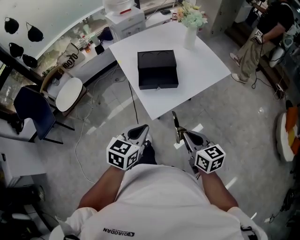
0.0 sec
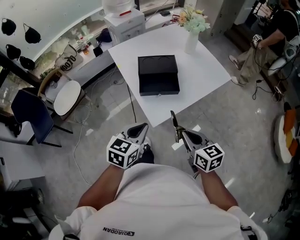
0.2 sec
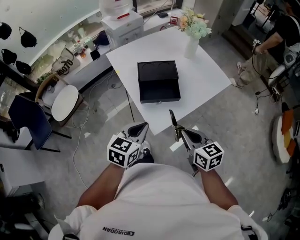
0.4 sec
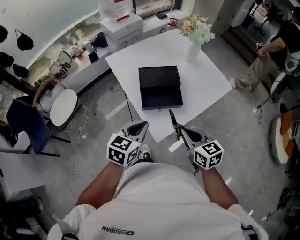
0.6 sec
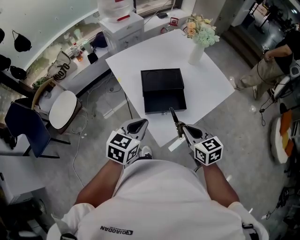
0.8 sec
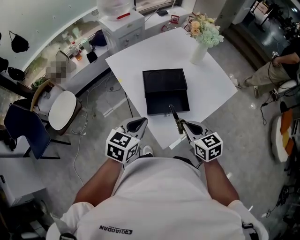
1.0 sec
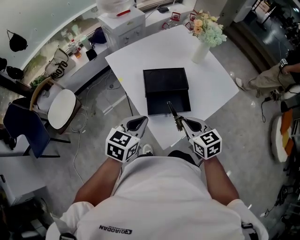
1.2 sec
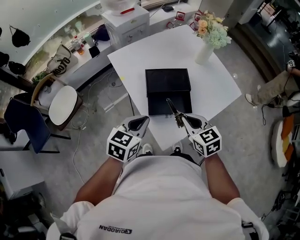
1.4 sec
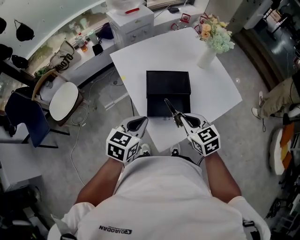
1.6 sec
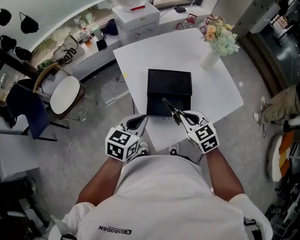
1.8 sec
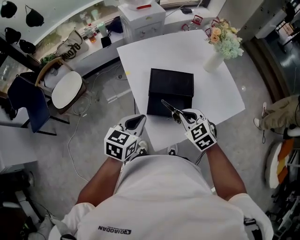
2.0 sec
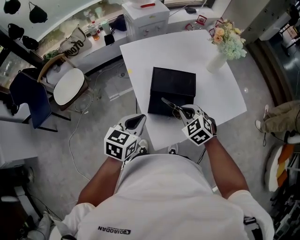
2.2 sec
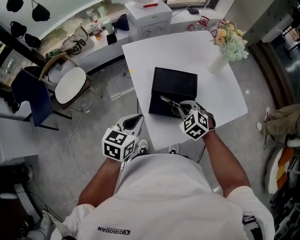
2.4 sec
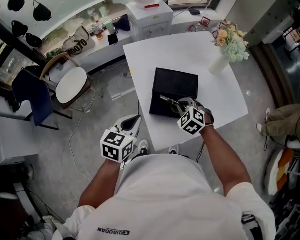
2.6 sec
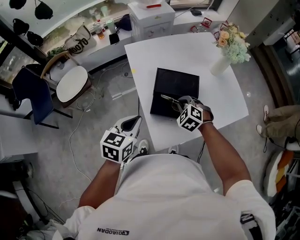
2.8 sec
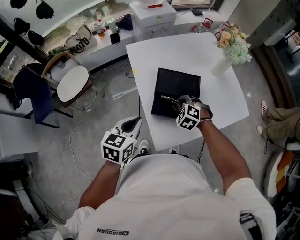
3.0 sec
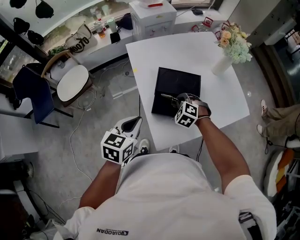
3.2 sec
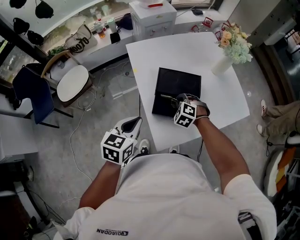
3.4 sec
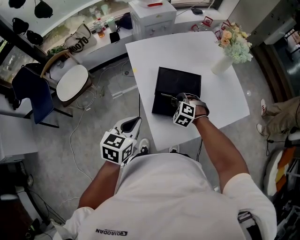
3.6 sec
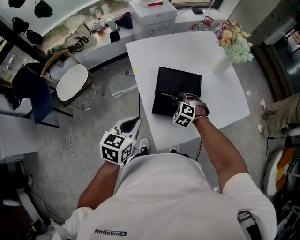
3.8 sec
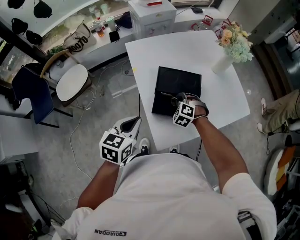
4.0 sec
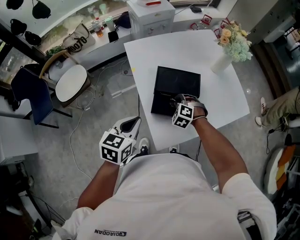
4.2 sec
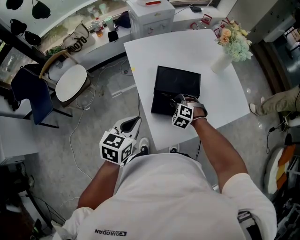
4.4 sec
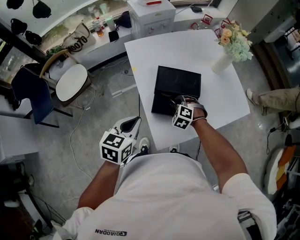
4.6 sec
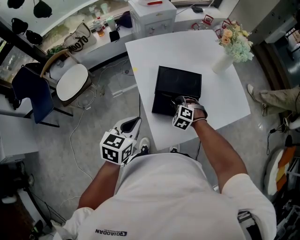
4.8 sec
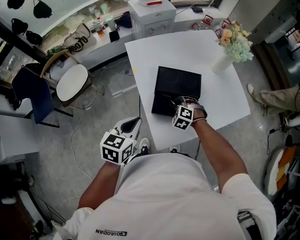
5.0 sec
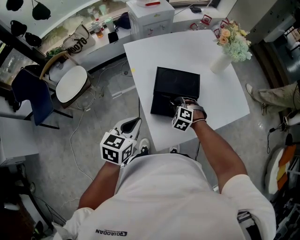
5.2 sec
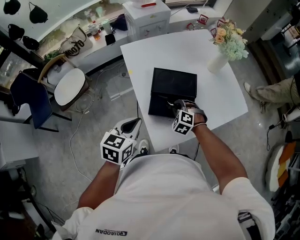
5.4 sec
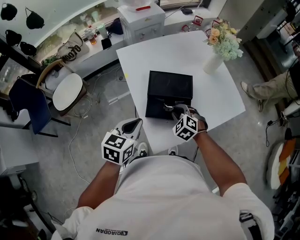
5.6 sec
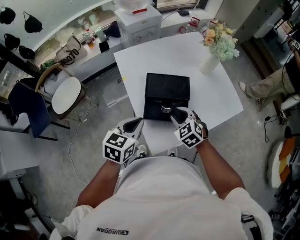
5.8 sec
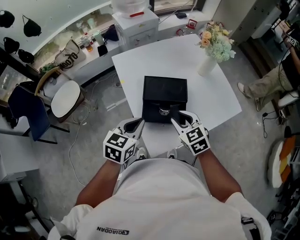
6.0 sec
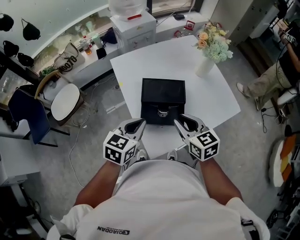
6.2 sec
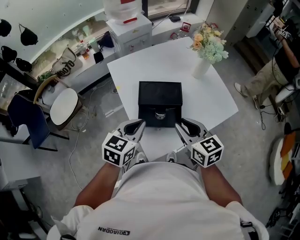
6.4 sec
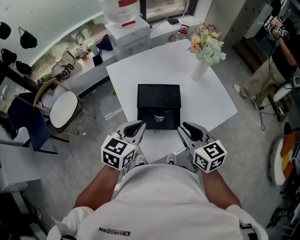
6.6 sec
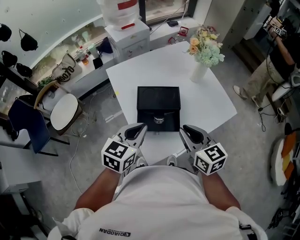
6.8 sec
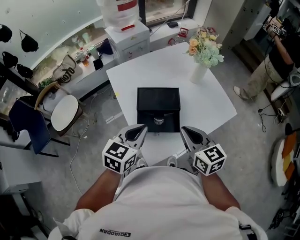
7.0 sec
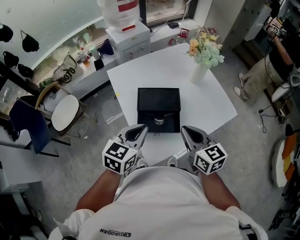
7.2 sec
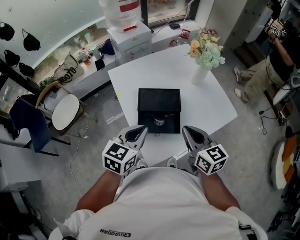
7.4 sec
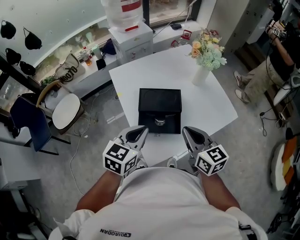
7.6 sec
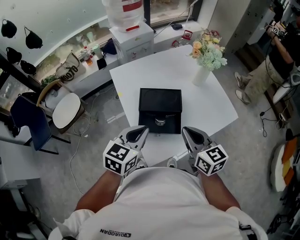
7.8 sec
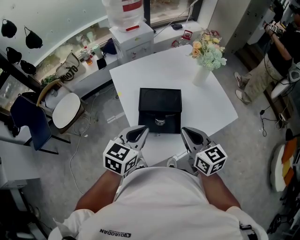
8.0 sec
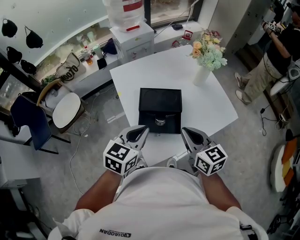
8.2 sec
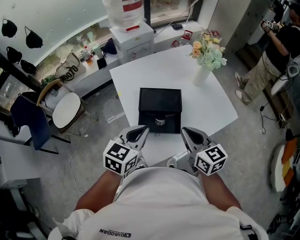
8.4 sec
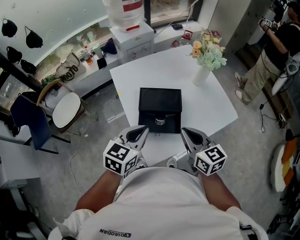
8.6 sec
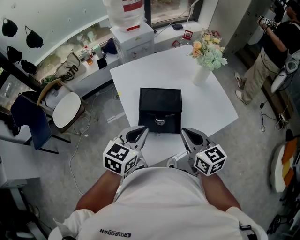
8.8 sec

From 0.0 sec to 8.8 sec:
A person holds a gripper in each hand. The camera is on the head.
From 0.0 sec to 1.4 sec: Both grippers travel together forward, approximately 25 cm. The right gripper turns by roughly 20 degrees.
From 1.4 sec to 3.0 sec: The left gripper turns by approximately 20 degrees, while the right gripper goes roughly 15 cm forward and downward, and twists about 60 degrees counterclockwise, seen from behind.
From 3.0 sec to 4.4 sec: The right gripper goes some 5 cm downward.
From 4.4 sec to 5.8 sec: The left gripper shifts by roughly 5 cm. The right gripper moves upward and backward, about 10 cm, swivels about 30 degrees, and opens up.
From 5.8 sec to 7.4 sec: The right gripper shifts some 15 cm upward and to the right, rolls clockwise, seen from behind, by about 40 degrees, and closes. Meanwhile the left gripper shifts some 10 cm upward and to the right.
From 7.4 sec to 8.8 sec: Both grippers stay put.

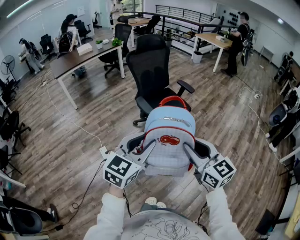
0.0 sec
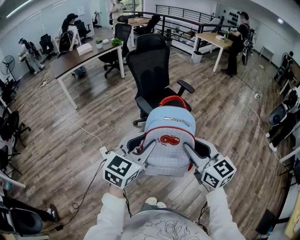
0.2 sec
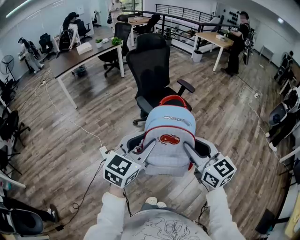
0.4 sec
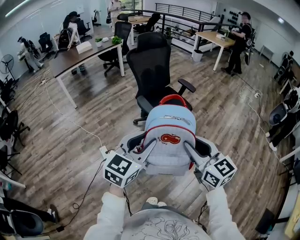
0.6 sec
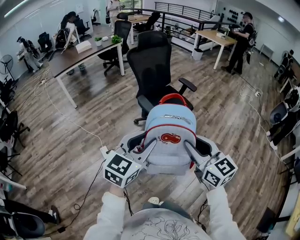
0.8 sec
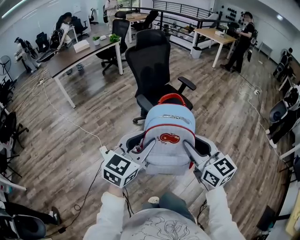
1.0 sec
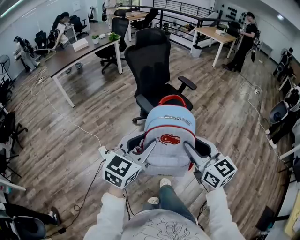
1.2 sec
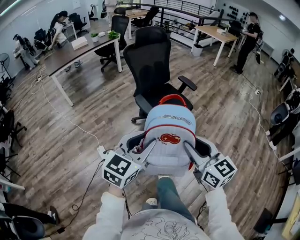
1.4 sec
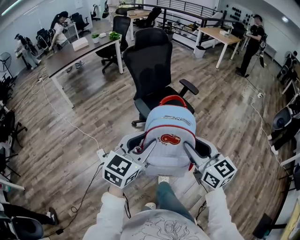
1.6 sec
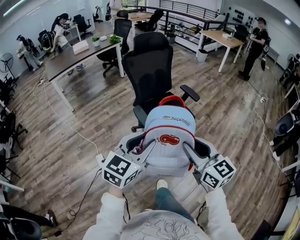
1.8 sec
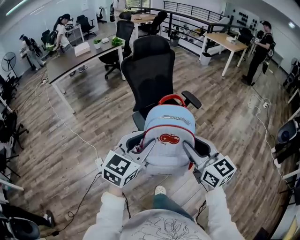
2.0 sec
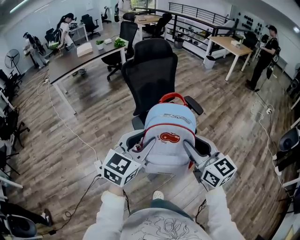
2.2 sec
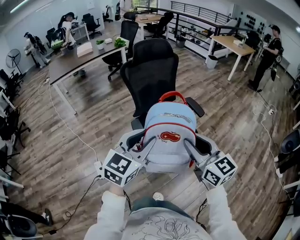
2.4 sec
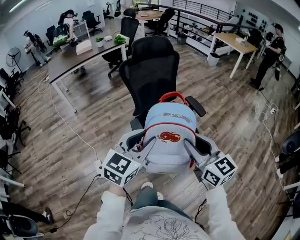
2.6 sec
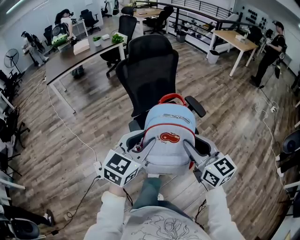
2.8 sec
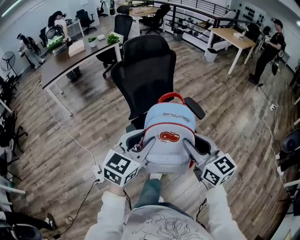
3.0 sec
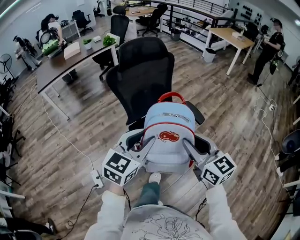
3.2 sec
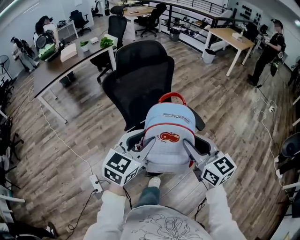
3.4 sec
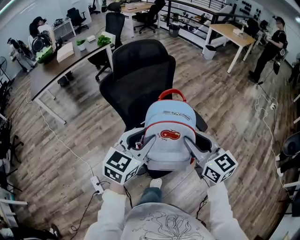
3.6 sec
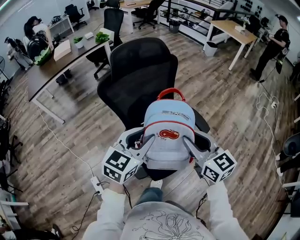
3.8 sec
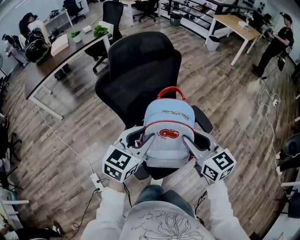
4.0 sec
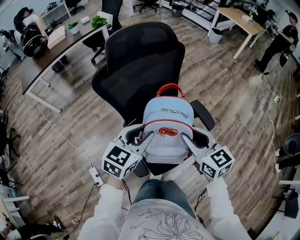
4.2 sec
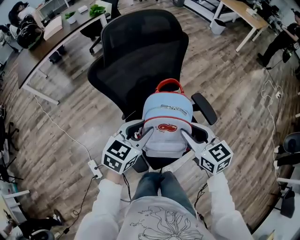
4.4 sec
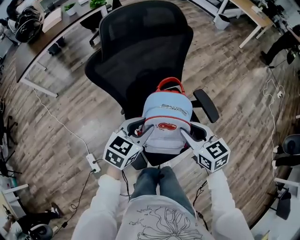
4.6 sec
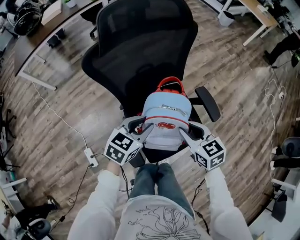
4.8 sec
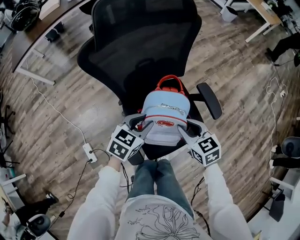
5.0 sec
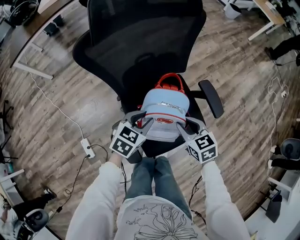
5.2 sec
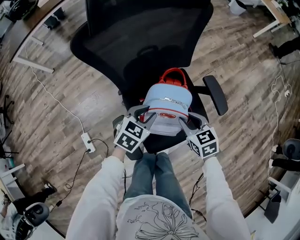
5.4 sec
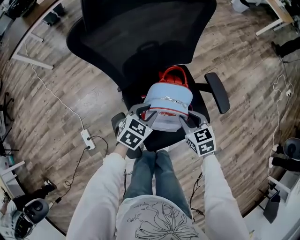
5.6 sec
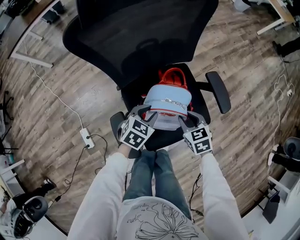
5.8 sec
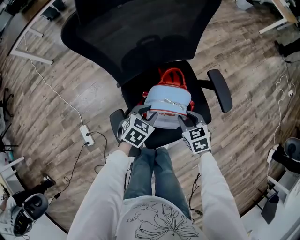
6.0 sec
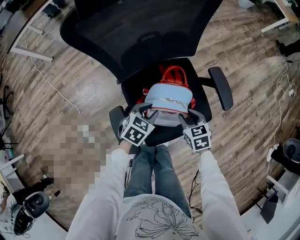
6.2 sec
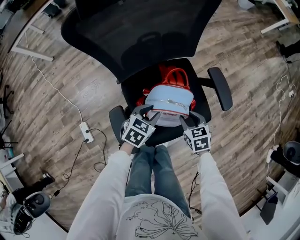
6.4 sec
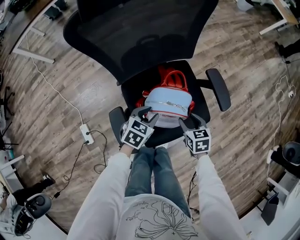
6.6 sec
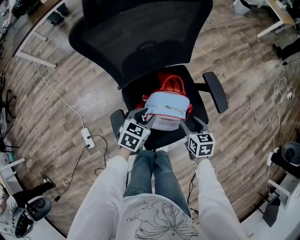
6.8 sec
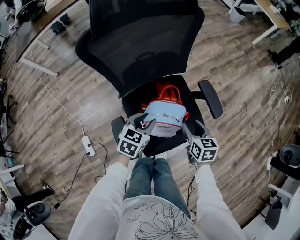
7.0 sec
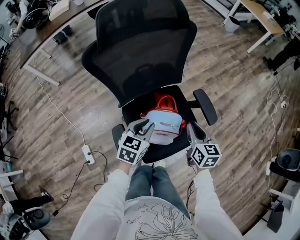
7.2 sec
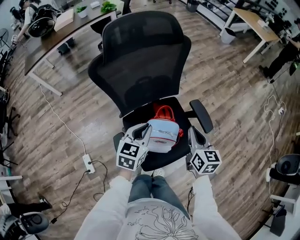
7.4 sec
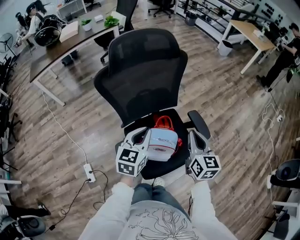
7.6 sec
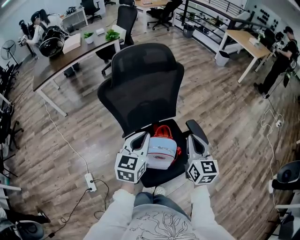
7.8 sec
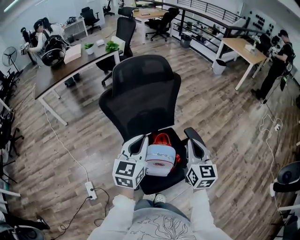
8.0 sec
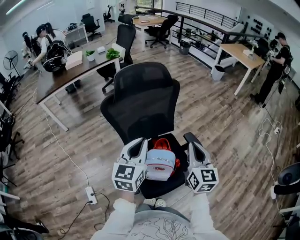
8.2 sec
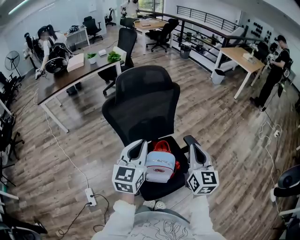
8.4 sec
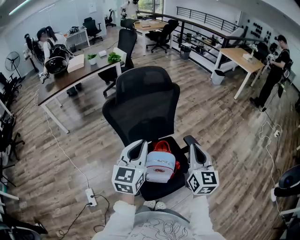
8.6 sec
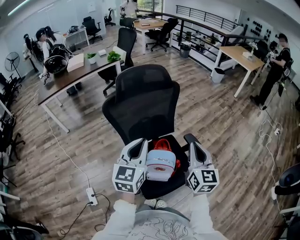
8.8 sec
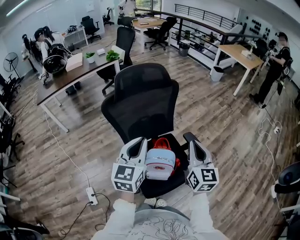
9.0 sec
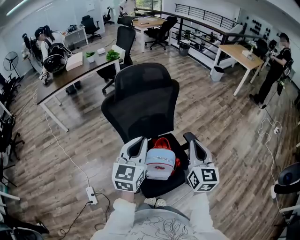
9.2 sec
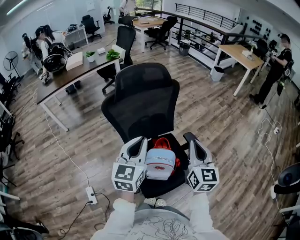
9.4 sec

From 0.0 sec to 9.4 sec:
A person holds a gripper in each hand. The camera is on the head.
From 0.0 sec to 1.6 sec: The grippers both shift forward by some 10 cm.
From 1.6 sec to 3.2 sec: The two grippers go approximately 25 cm forward.
From 3.2 sec to 4.8 sec: The grippers both shift downward and forward by about 20 cm. The left gripper changes its angle by approximately 20 degrees. Meanwhile the right gripper turns by approximately 30 degrees.
From 4.8 sec to 6.2 sec: Both grippers travel together downward, about 15 cm. The right gripper swivels roughly 20 degrees.
From 6.2 sec to 7.8 sec: Both grippers move upward, roughly 25 cm. The left gripper angles its fingers upward, by approximately 30 degrees, and closes up, while the right gripper tilts its fingers approximately 40 degrees upward, and closes up.
From 7.8 sec to 9.4 sec: The two grippers go roughly 5 cm upward.

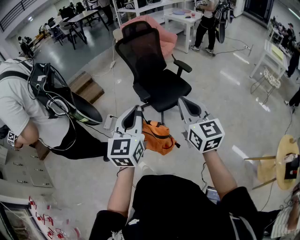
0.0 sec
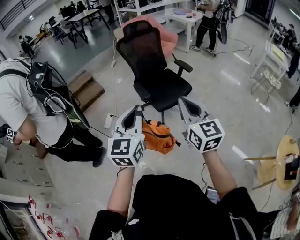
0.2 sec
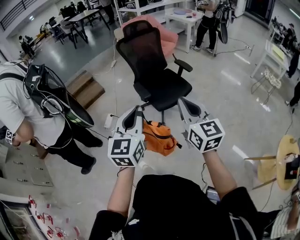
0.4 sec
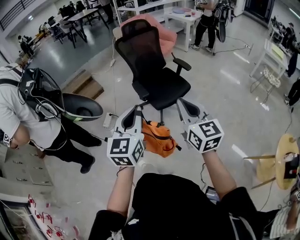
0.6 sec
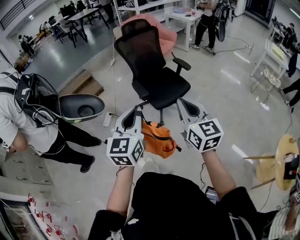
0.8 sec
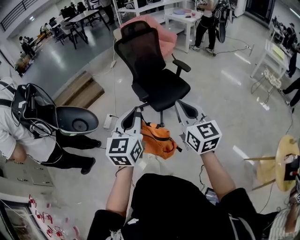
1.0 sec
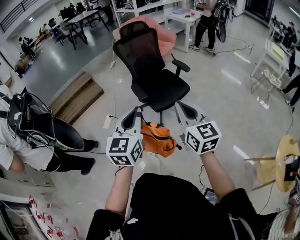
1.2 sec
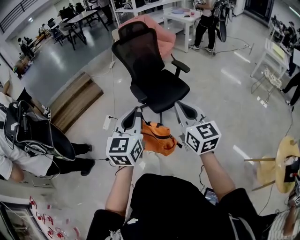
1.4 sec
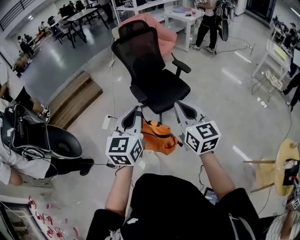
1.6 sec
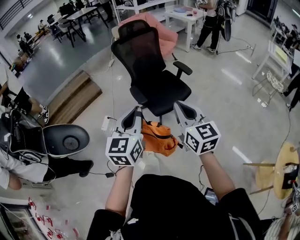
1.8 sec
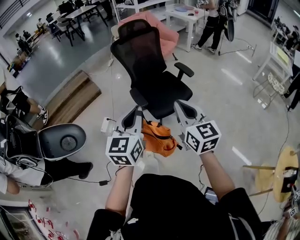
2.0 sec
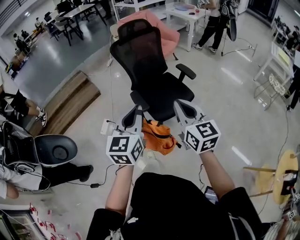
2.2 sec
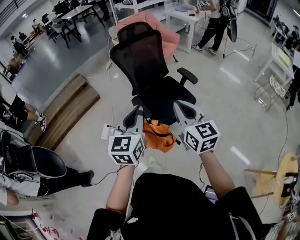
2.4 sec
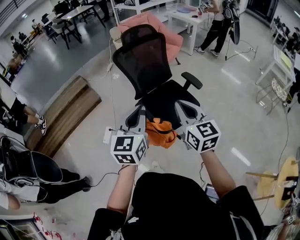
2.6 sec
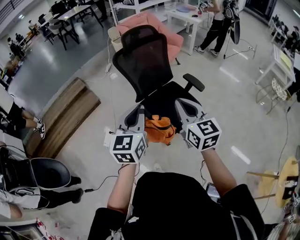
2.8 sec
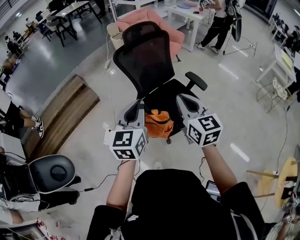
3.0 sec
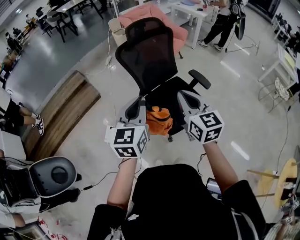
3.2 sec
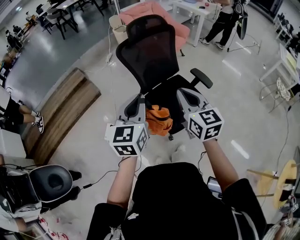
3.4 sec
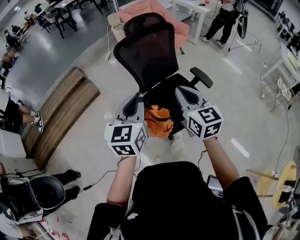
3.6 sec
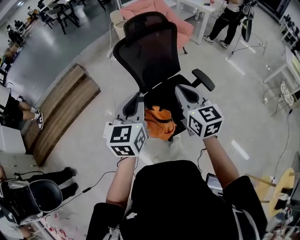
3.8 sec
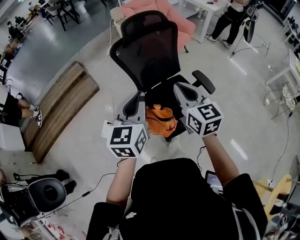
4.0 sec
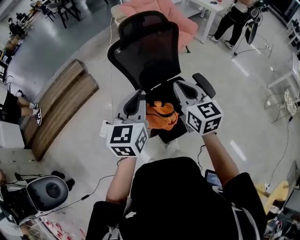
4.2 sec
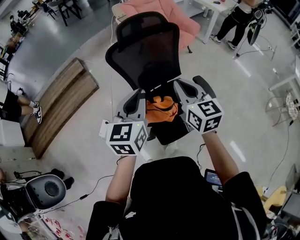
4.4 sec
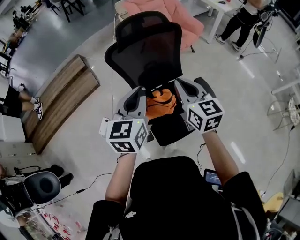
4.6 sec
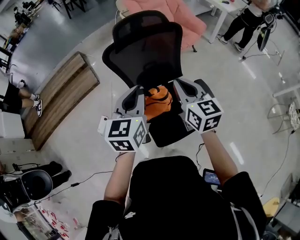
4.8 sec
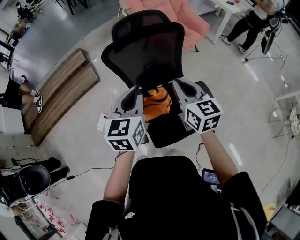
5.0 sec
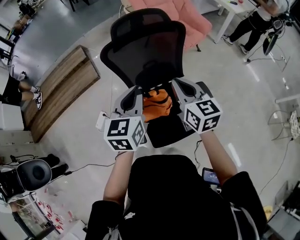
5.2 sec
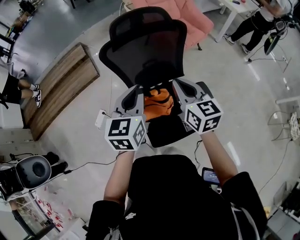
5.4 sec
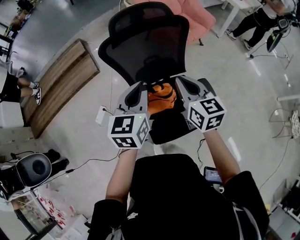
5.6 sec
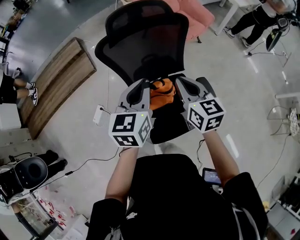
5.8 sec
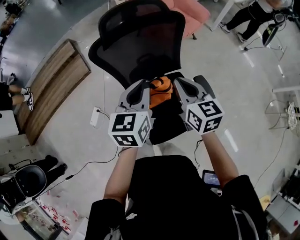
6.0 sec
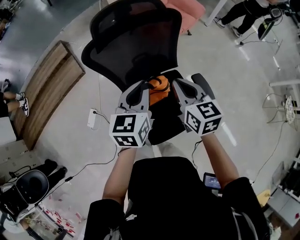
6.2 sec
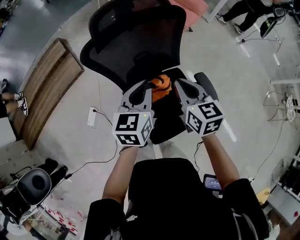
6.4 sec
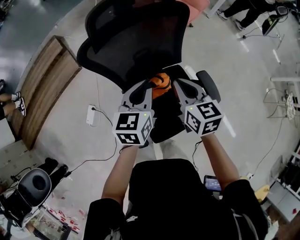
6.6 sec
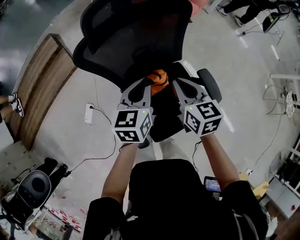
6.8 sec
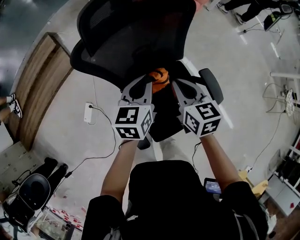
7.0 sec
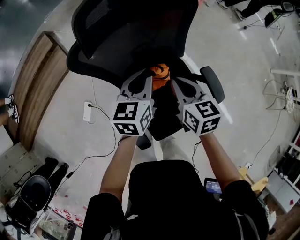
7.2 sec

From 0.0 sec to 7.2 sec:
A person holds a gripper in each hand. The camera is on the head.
From 0.0 sec to 1.4 sec: There are only small adjustments of the grippers.
From 1.4 sec to 2.8 sec: The two grippers go approximately 35 cm forward.
From 2.8 sec to 4.4 sec: The two grippers go about 25 cm forward.
From 4.4 sec to 5.8 sec: The left gripper goes approximately 15 cm forward, to the right and downward, while the right gripper goes about 15 cm forward, downward and to the right.
From 5.8 sec to 7.2 sec: The two grippers go roughly 20 cm downward and forward.
